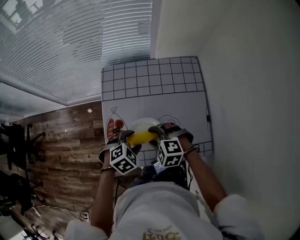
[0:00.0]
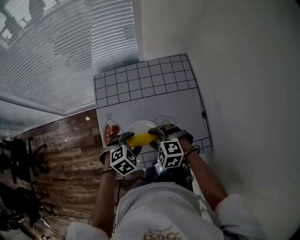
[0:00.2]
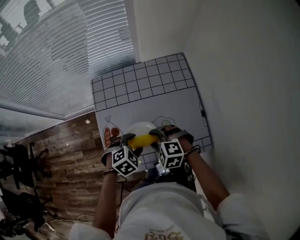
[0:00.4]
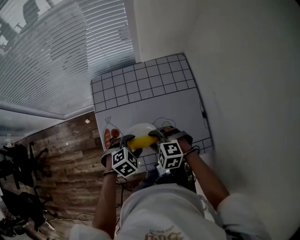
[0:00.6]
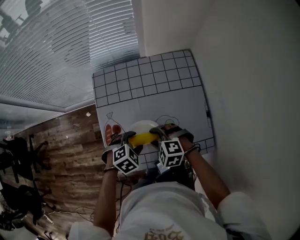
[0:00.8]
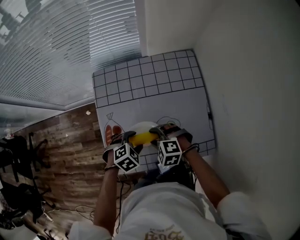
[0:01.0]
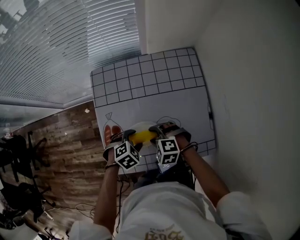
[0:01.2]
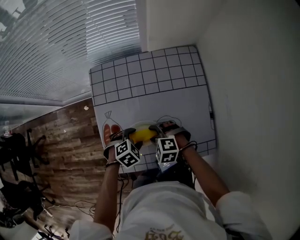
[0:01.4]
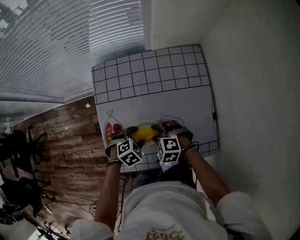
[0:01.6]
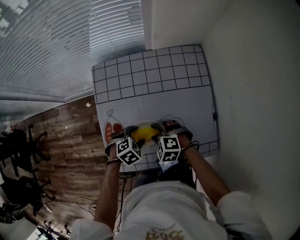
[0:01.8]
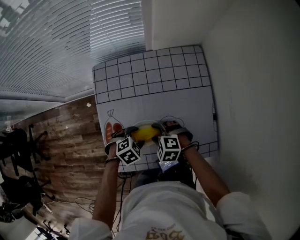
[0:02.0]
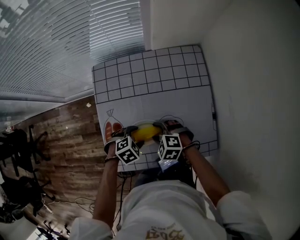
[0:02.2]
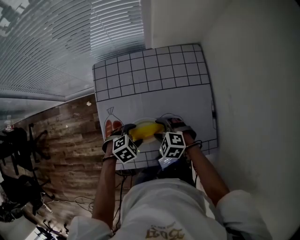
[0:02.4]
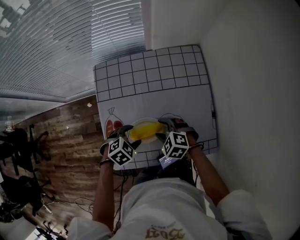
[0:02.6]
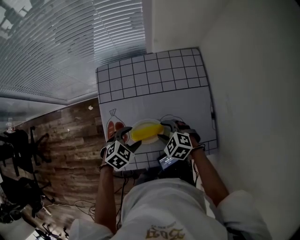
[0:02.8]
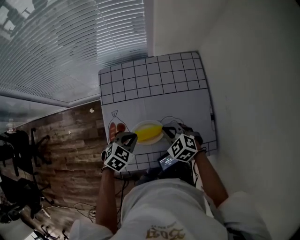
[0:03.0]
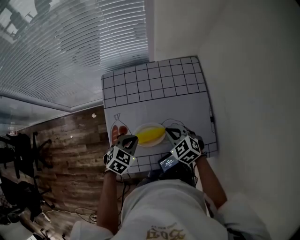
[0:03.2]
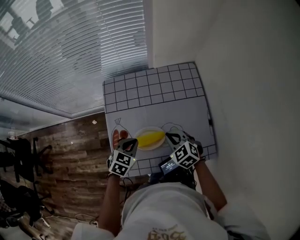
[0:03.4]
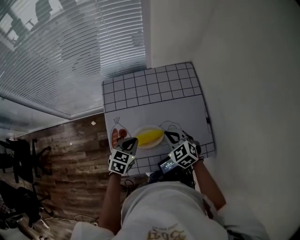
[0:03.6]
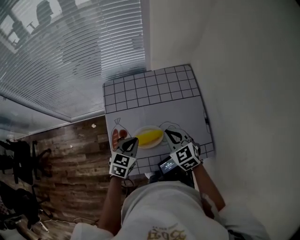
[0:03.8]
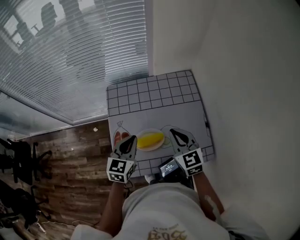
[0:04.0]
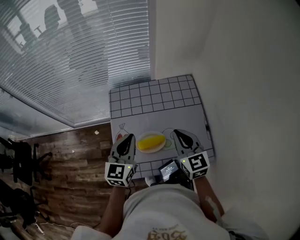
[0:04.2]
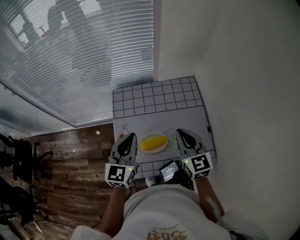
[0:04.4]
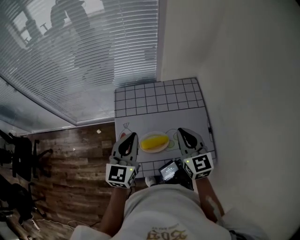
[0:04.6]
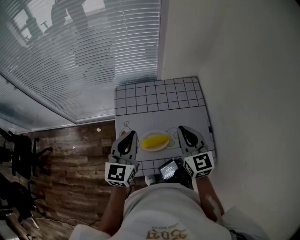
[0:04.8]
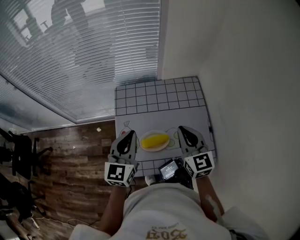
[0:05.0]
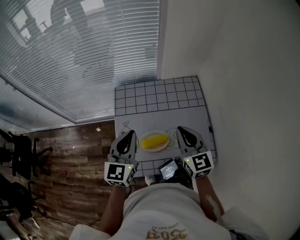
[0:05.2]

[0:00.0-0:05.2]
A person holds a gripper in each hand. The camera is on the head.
0:00.0 to 0:01.8: The two grippers go roughly 10 cm downward.
0:01.8 to 0:03.4: Both grippers move upward, roughly 10 cm. The right gripper turns by some 30 degrees, and closes its fingers. Meanwhile the left gripper rotates about 30 degrees, and closes up.
0:03.4 to 0:05.2: Both grippers travel together upward, about 20 cm. The left gripper angles its fingers upward, by approximately 40 degrees. Meanwhile the right gripper points its fingers about 30 degrees further upward.

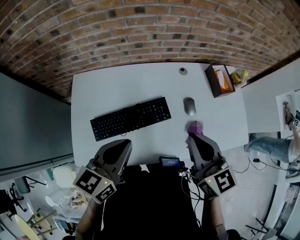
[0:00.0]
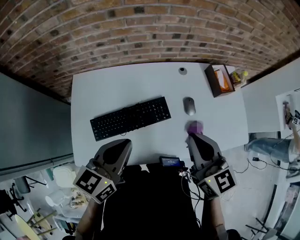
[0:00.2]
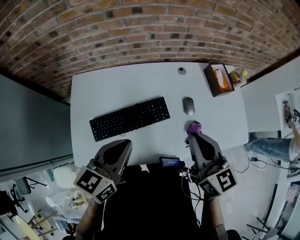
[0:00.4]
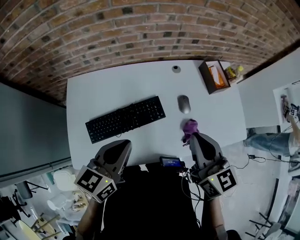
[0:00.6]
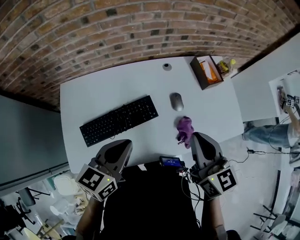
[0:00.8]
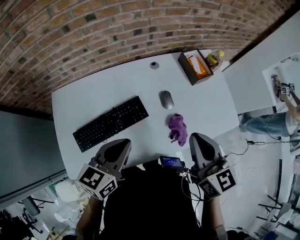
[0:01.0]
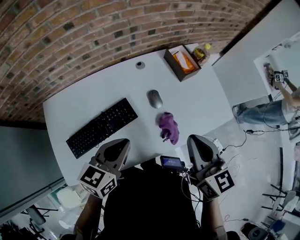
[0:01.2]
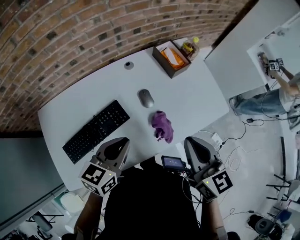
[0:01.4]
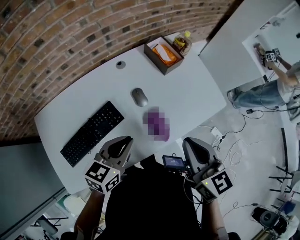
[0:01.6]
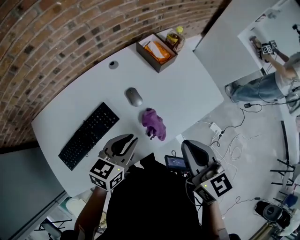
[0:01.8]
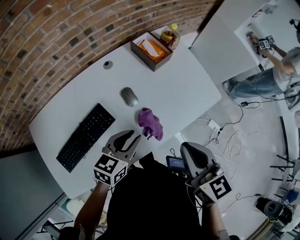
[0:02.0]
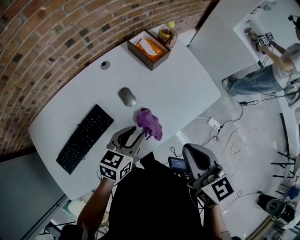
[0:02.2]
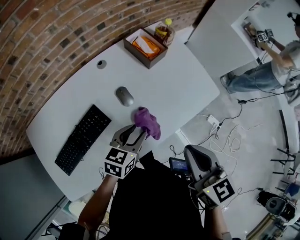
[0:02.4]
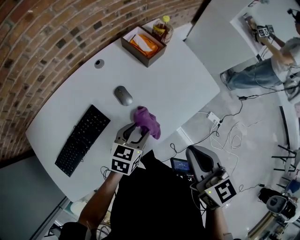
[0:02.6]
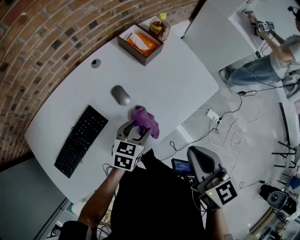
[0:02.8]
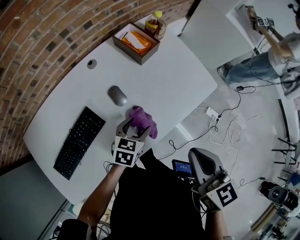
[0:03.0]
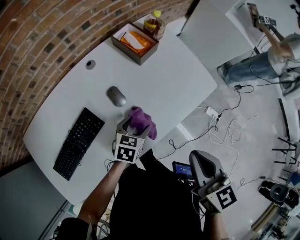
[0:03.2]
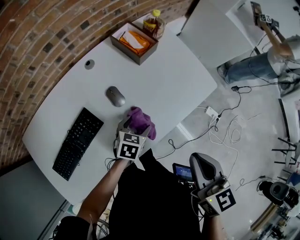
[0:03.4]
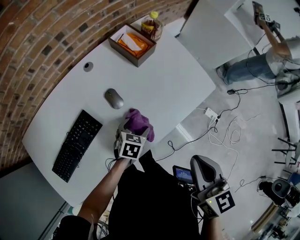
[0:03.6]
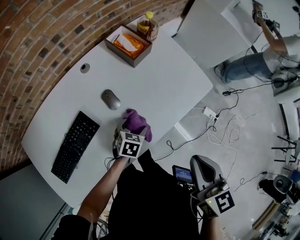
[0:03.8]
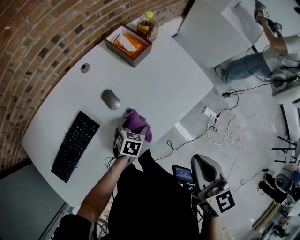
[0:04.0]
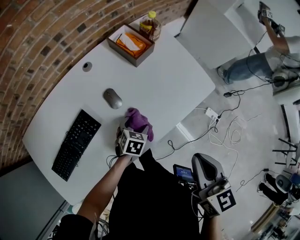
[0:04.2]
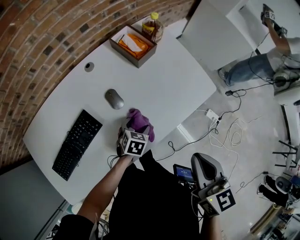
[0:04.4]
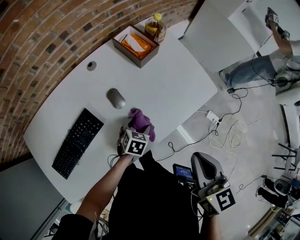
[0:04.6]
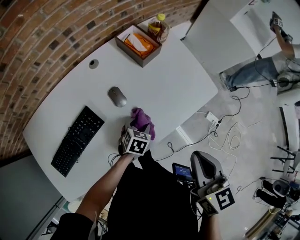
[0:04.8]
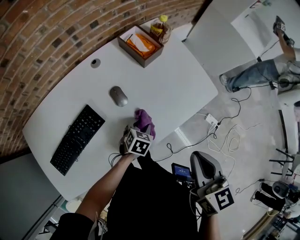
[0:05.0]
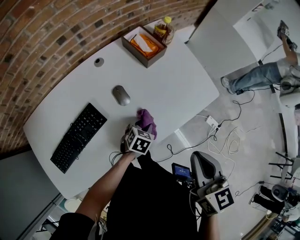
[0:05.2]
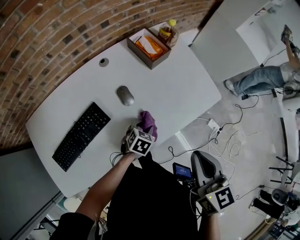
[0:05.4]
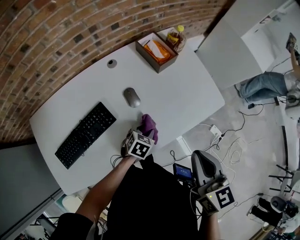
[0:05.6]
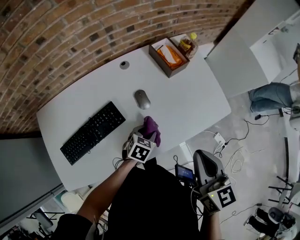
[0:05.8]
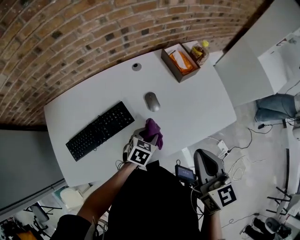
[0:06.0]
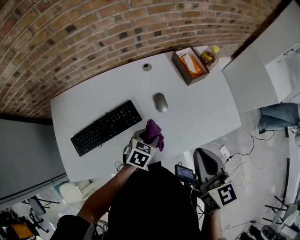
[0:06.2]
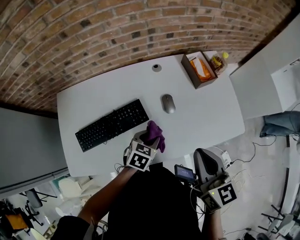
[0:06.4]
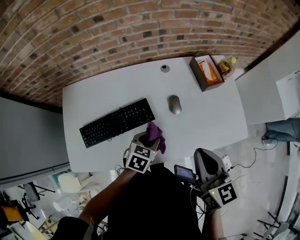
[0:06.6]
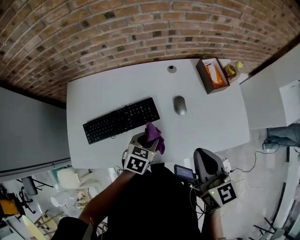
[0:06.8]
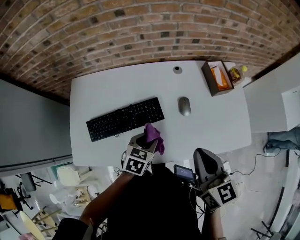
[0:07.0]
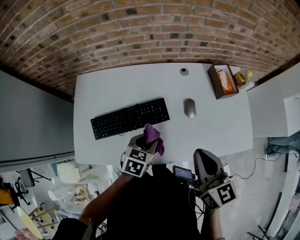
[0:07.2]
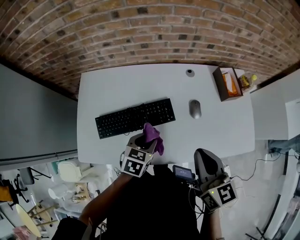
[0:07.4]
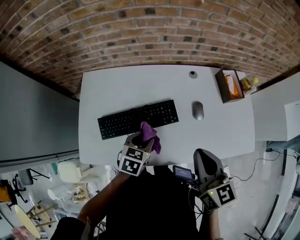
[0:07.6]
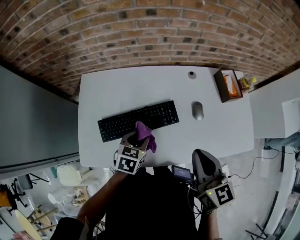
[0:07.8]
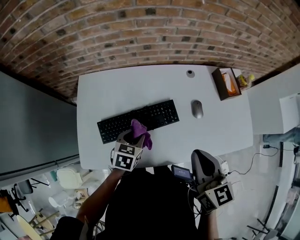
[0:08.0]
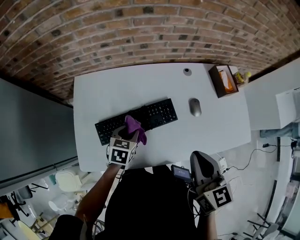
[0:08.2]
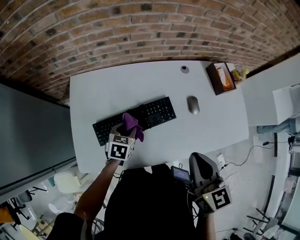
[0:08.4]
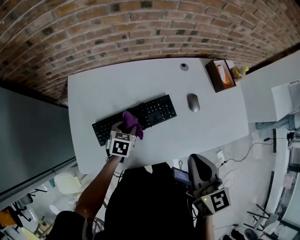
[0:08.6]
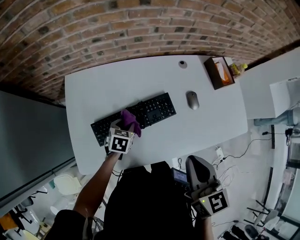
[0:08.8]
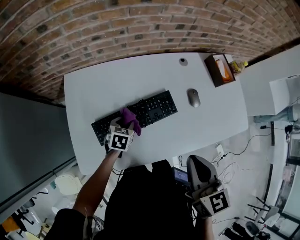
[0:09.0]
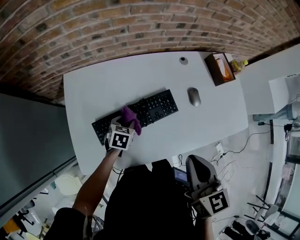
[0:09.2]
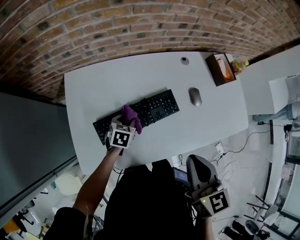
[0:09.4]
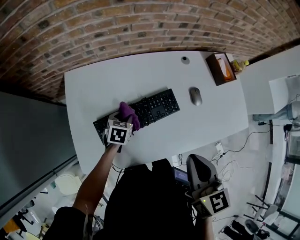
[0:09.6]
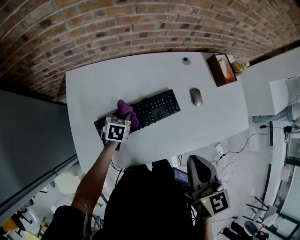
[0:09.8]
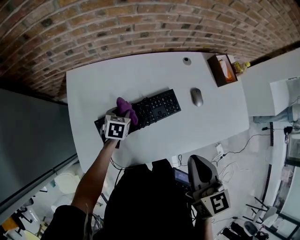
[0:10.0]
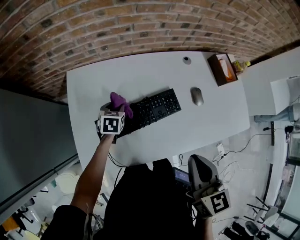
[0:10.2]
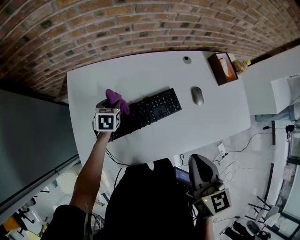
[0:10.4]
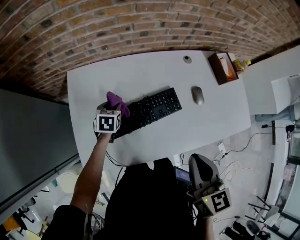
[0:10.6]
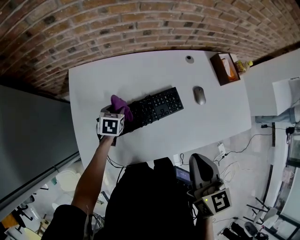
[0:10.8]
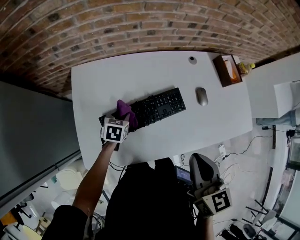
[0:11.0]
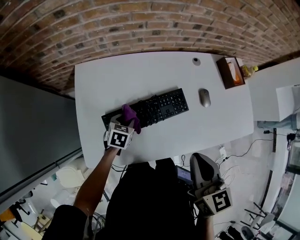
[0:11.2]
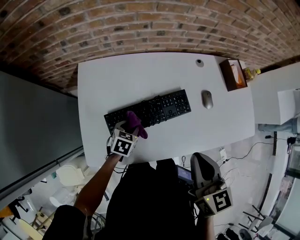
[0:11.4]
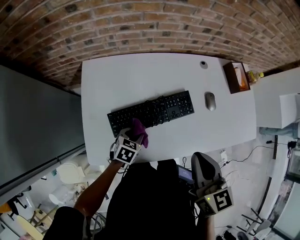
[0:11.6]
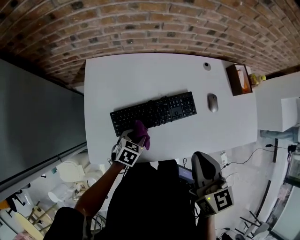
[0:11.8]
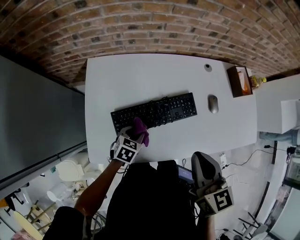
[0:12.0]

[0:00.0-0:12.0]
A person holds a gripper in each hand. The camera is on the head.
0:00.0 to 0:01.6: The left gripper changes place by approximately 25 cm, and swivels approximately 30 degrees, while the right gripper ends up some 20 cm from where it was, and changes its angle by about 20 degrees.
0:01.6 to 0:03.0: The left gripper moves downward, to the right and forward, approximately 20 cm, rotates some 20 degrees, and opens. Meanwhile the right gripper shifts about 5 cm to the right.
0:03.0 to 0:04.4: The left gripper travels downward by about 10 cm.
0:04.4 to 0:06.0: The right gripper travels to the left by about 10 cm. The left gripper travels upward and to the left by some 10 cm, and closes up.
0:06.0 to 0:07.6: The grippers both shift to the left by roughly 20 cm. The left gripper turns by about 30 degrees.
0:07.6 to 0:09.0: The right gripper is displaced to the left by some 10 cm, while the left gripper travels to the left, downward and forward by roughly 15 cm.
0:09.0 to 0:10.4: The left gripper heads to the left and forward, covering approximately 10 cm.
0:10.4 to 0:12.0: The left gripper heads backward, covering roughly 15 cm. Meanwhile the right gripper changes place by about 5 cm.

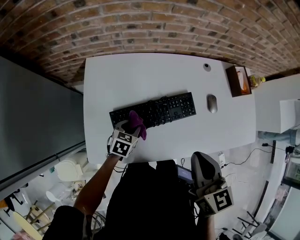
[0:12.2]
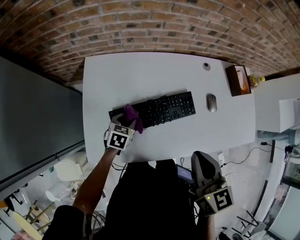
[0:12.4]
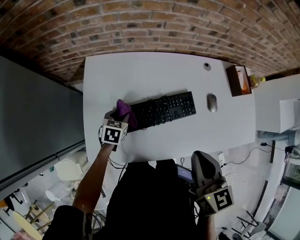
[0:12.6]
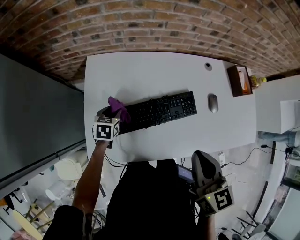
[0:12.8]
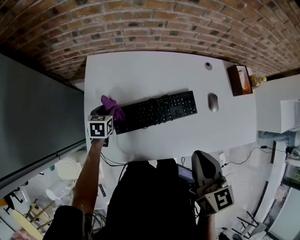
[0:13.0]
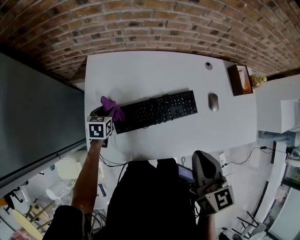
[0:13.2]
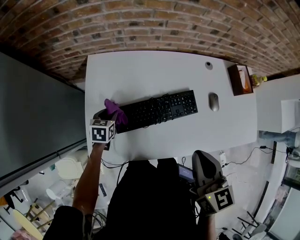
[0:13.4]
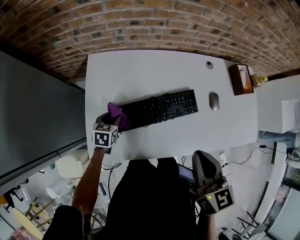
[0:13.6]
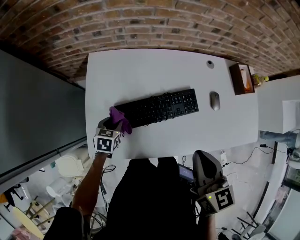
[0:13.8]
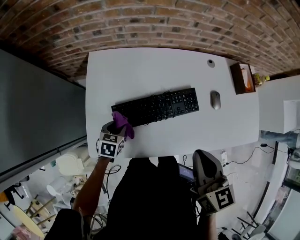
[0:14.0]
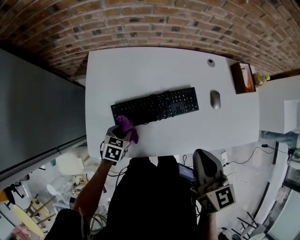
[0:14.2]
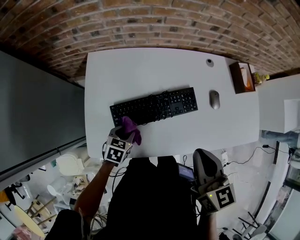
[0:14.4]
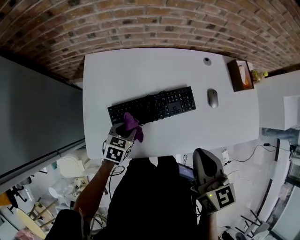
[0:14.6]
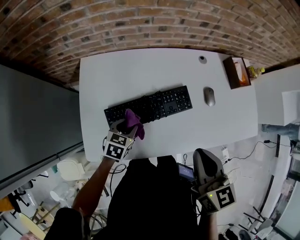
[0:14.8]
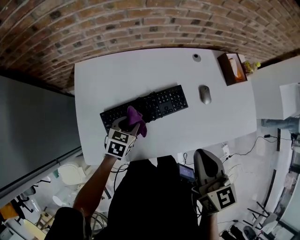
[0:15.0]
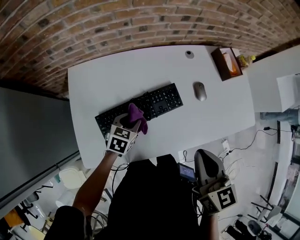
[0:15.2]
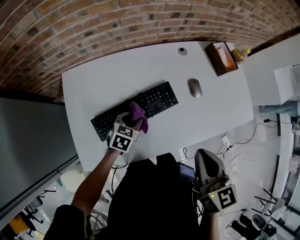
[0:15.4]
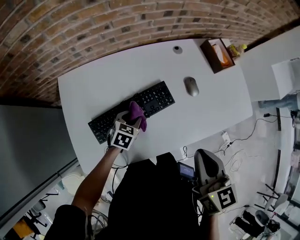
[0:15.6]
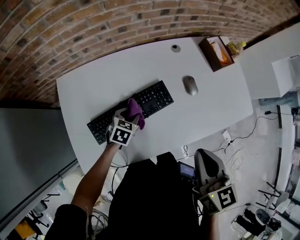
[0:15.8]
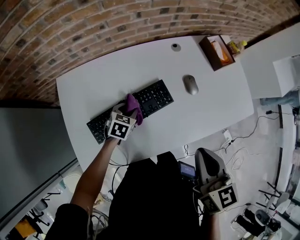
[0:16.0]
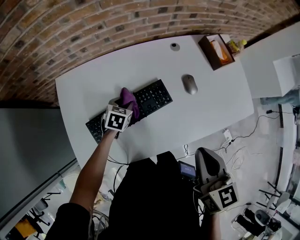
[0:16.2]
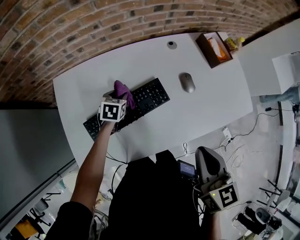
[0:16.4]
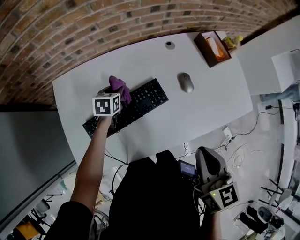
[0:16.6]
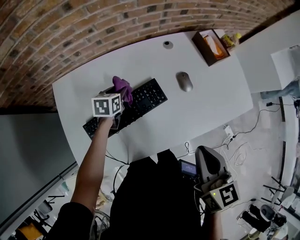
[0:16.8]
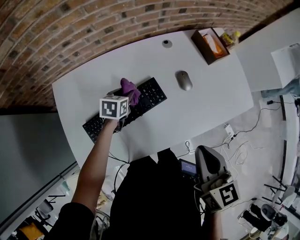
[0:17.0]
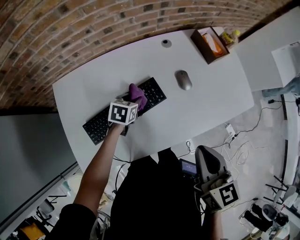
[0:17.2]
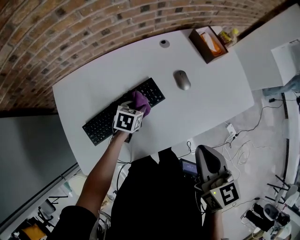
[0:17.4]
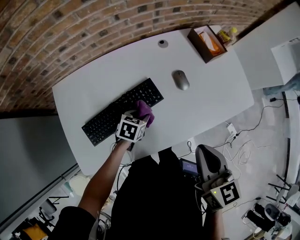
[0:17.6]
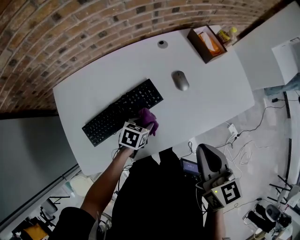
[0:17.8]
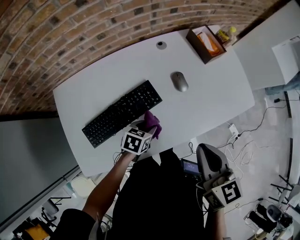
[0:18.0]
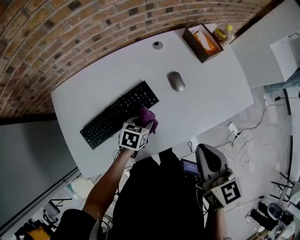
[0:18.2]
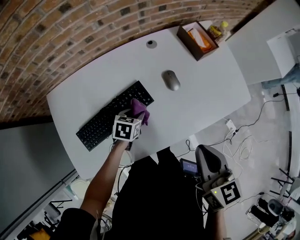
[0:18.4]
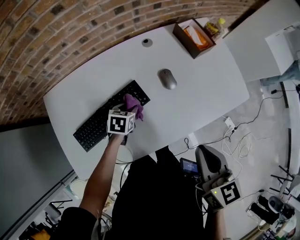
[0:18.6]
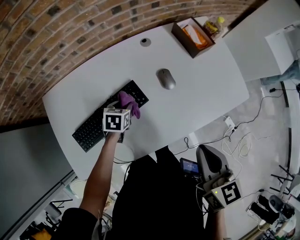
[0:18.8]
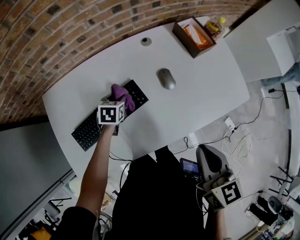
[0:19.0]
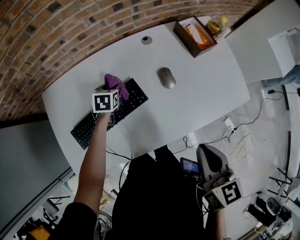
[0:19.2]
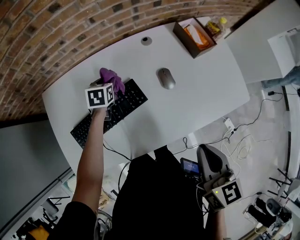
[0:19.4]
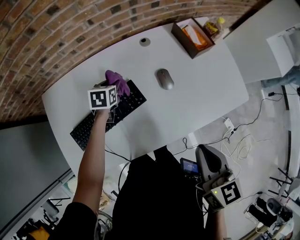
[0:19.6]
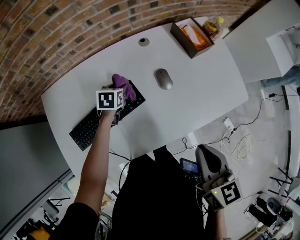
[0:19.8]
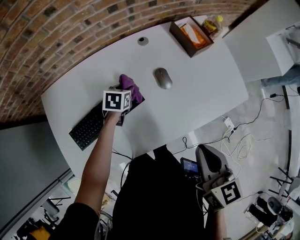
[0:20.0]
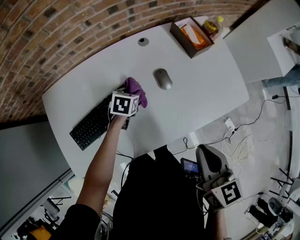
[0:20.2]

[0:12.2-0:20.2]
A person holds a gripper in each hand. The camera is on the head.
0:12.2 to 0:13.8: The left gripper moves to the left, roughly 10 cm.
0:13.8 to 0:15.4: The right gripper shifts roughly 10 cm to the right. The left gripper shifts roughly 20 cm to the right, and changes its angle by roughly 30 degrees.
0:15.4 to 0:17.0: The right gripper heads to the right, covering approximately 5 cm. The left gripper goes about 10 cm forward.
0:17.0 to 0:18.6: Both grippers move to the right, roughly 10 cm.
0:18.6 to 0:20.2: The left gripper moves forward, about 5 cm, and reaches about 10 cm to the left, then returns.
